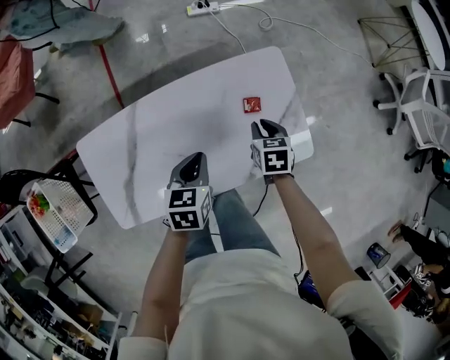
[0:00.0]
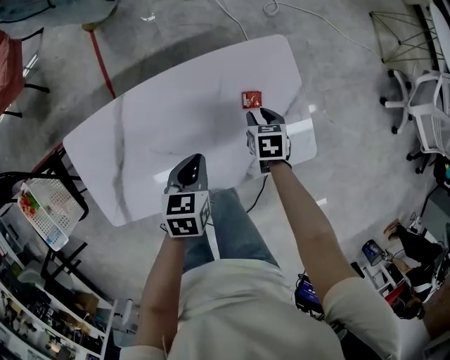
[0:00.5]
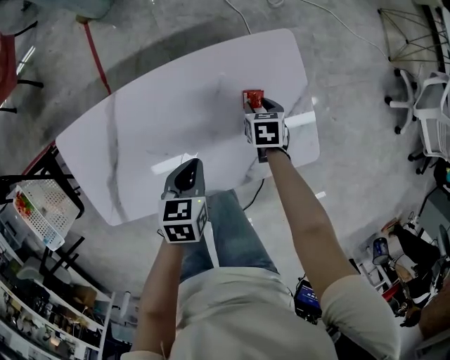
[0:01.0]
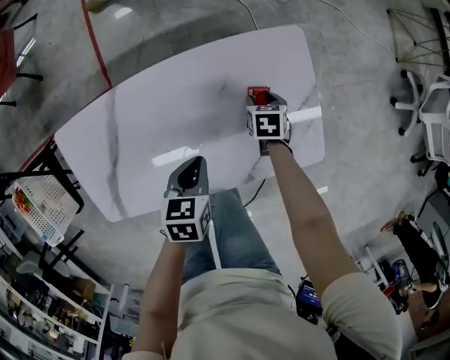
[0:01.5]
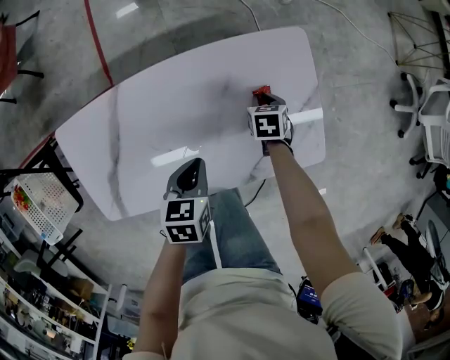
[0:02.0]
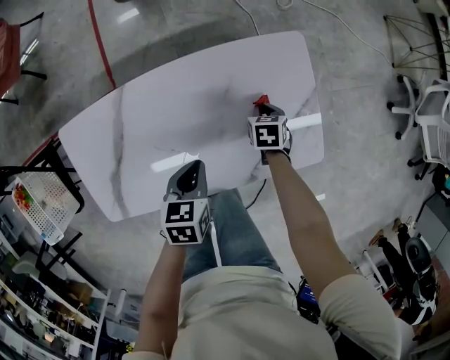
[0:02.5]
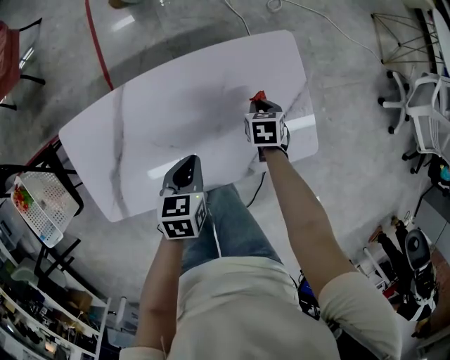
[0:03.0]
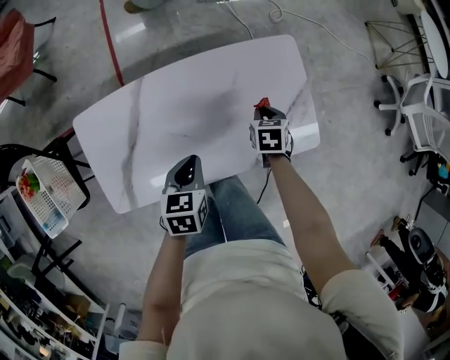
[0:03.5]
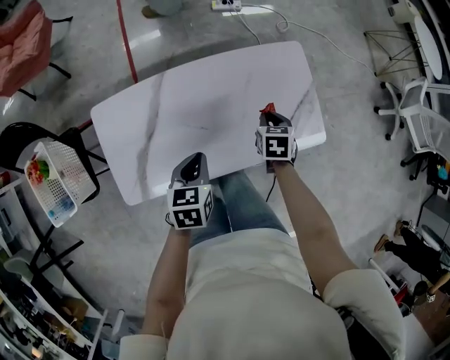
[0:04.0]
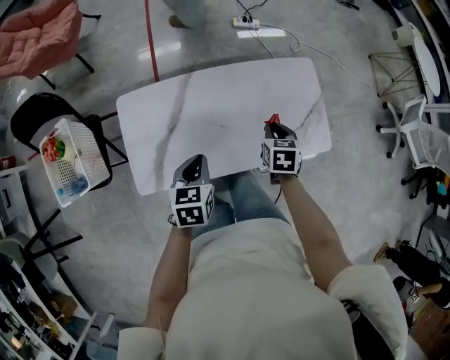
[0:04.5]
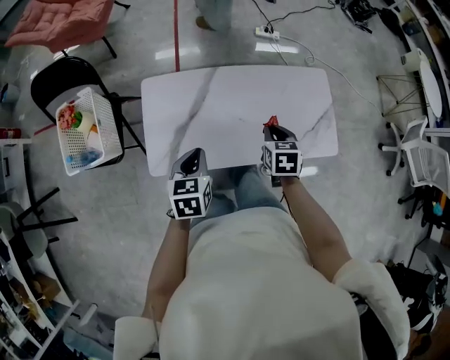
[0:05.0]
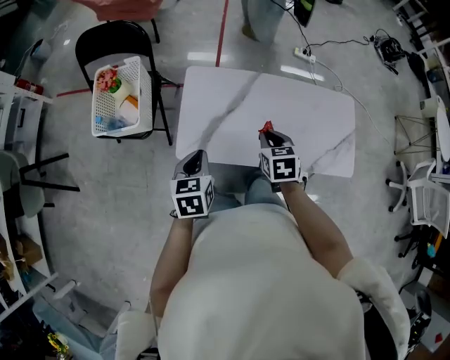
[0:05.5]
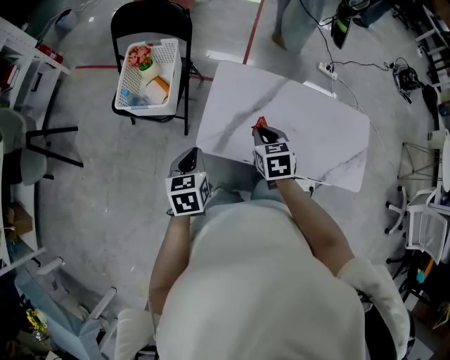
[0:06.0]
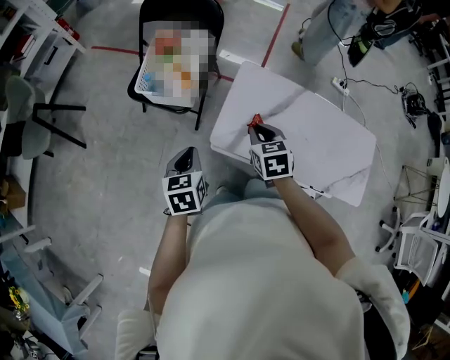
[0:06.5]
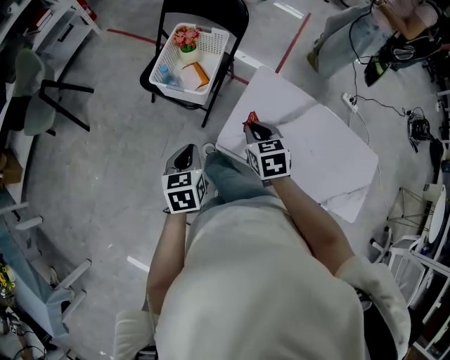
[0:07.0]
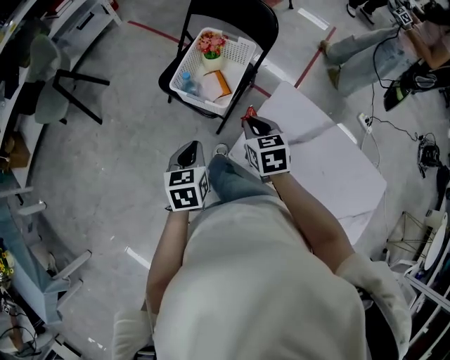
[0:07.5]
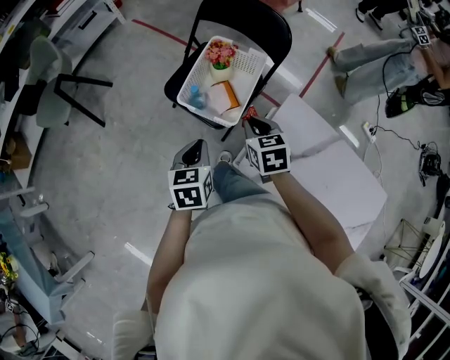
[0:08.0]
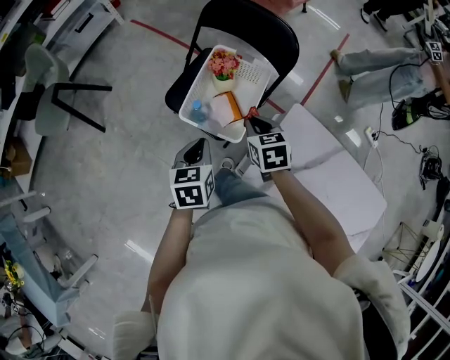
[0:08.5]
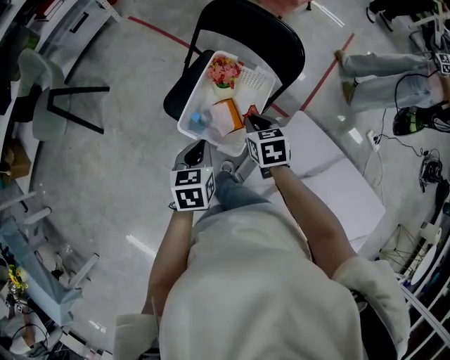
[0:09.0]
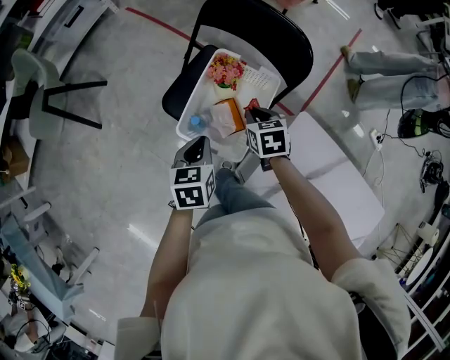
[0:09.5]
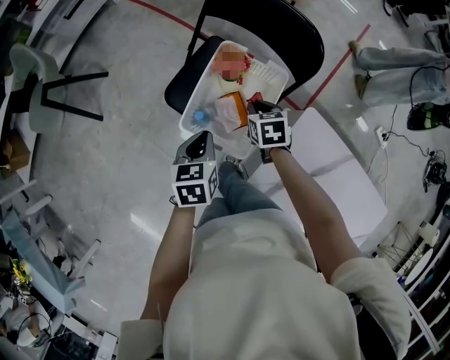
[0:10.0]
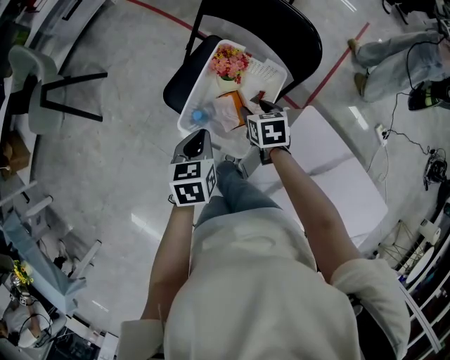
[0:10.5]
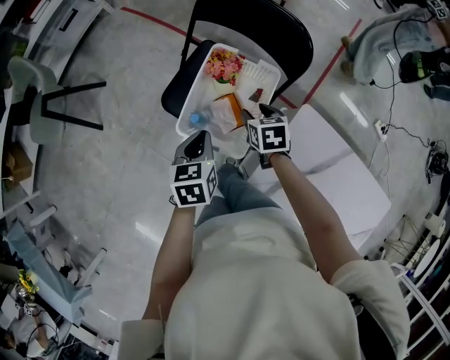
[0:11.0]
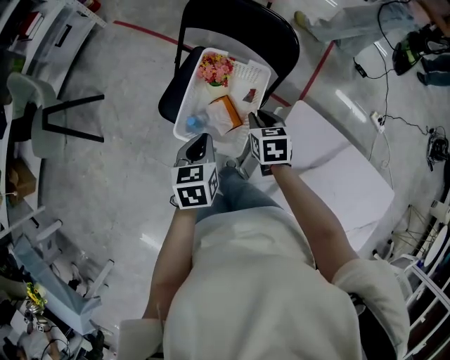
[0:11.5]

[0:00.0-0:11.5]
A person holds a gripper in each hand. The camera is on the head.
0:00.0 to 0:02.0: The left gripper heads downward, covering approximately 10 cm; the right gripper shifts some 15 cm downward.
0:02.0 to 0:04.0: The right gripper is displaced upward and backward by some 25 cm. Meanwhile the left gripper heads upward, backward and to the left, covering some 20 cm.
0:04.0 to 0:06.0: Both grippers are carried about 50 cm. The right gripper rotates about 40 degrees. The left gripper changes its angle by roughly 40 degrees.
0:06.0 to 0:07.5: The two grippers go some 20 cm to the left and forward. The right gripper changes its angle by roughly 20 degrees.
0:07.5 to 0:09.5: The grippers both shift forward by about 25 cm.
0:09.5 to 0:11.5: There are only small adjustments of the grippers.

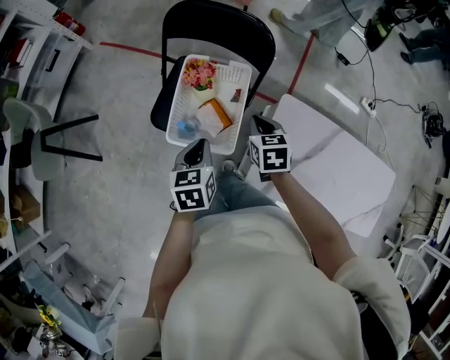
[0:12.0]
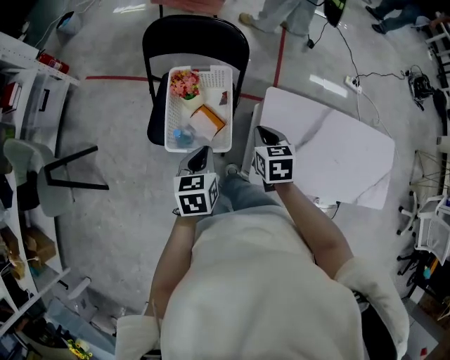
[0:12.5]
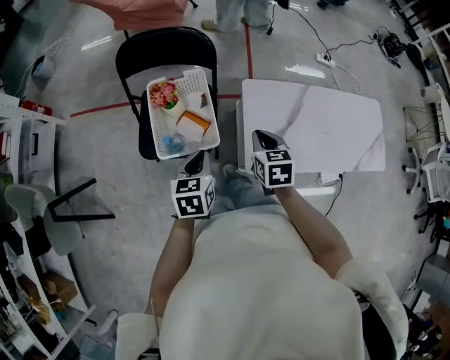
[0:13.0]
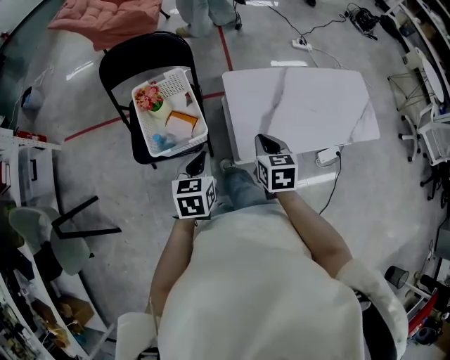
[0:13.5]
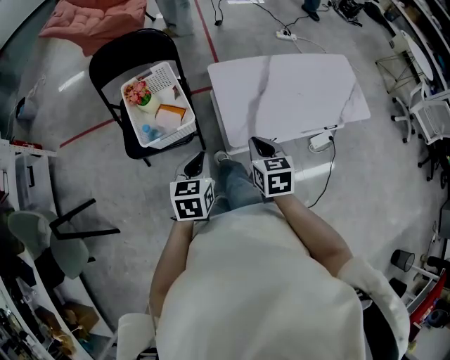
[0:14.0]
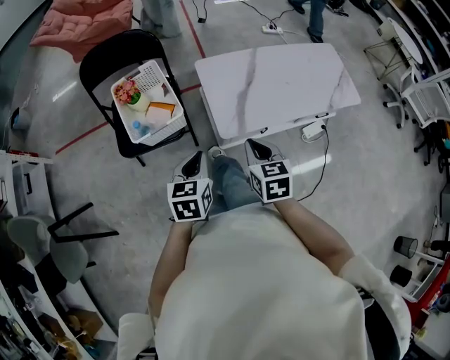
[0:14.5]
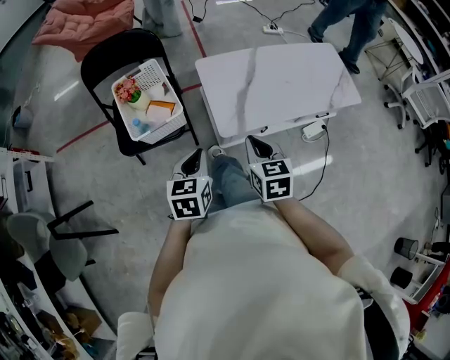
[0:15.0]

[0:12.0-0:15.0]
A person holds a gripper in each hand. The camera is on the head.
0:12.0 to 0:13.5: The left gripper changes place by approximately 15 cm, and turns by about 40 degrees. Meanwhile the right gripper moves roughly 25 cm, and swivels approximately 40 degrees.
0:13.5 to 0:15.0: The right gripper travels backward by approximately 15 cm. Meanwhile the left gripper goes about 15 cm backward and to the right.

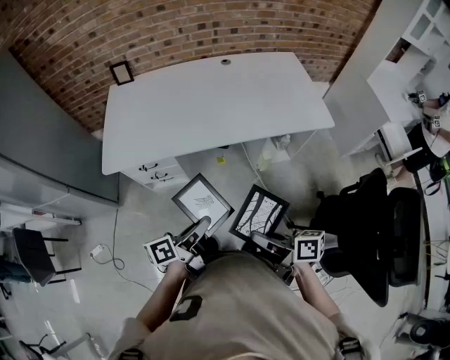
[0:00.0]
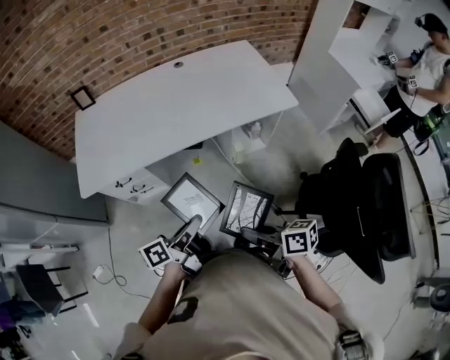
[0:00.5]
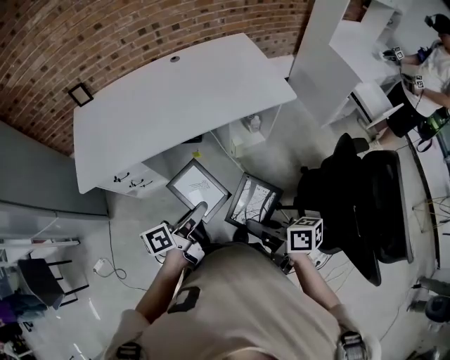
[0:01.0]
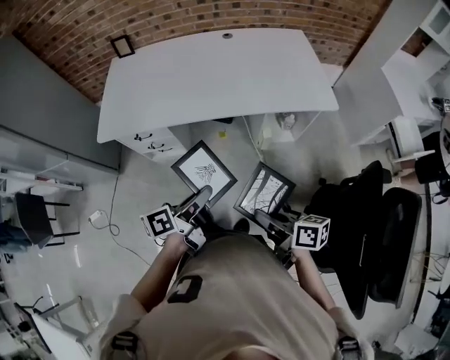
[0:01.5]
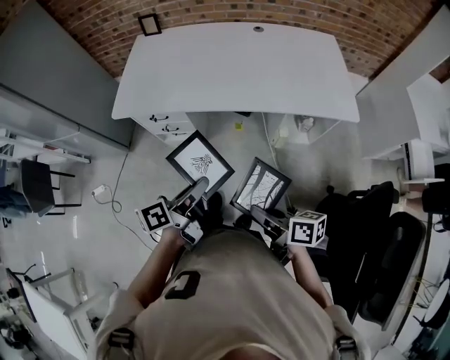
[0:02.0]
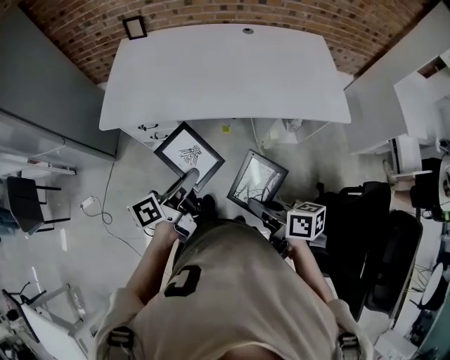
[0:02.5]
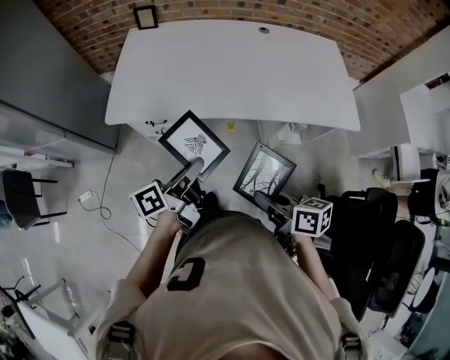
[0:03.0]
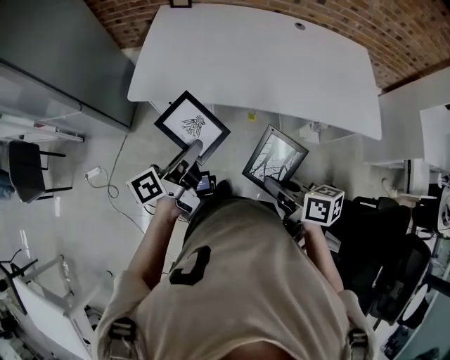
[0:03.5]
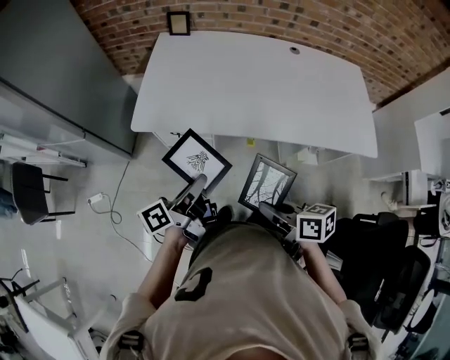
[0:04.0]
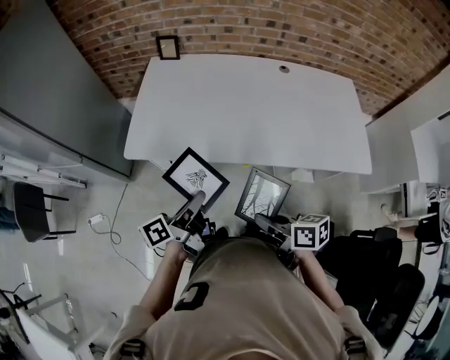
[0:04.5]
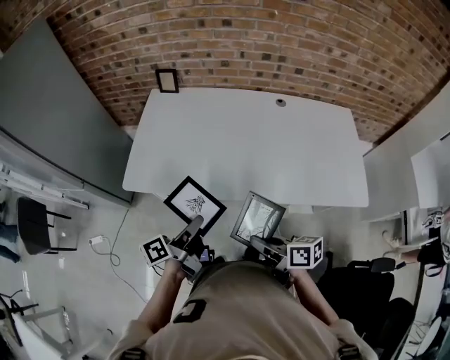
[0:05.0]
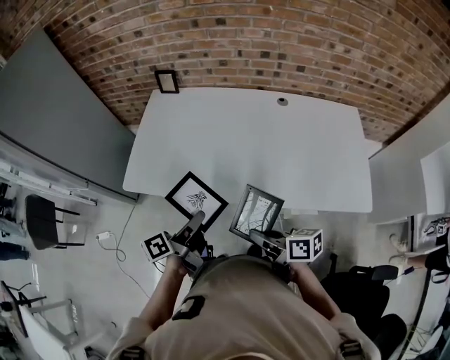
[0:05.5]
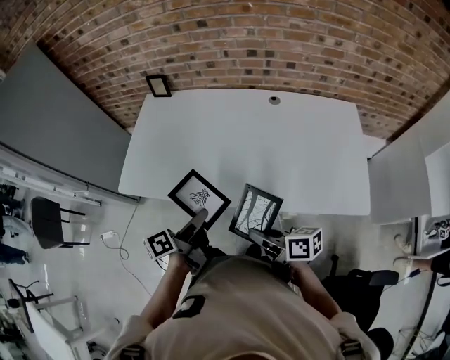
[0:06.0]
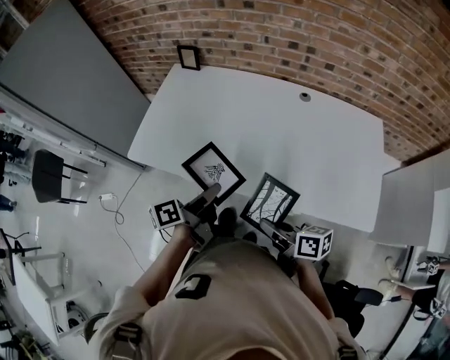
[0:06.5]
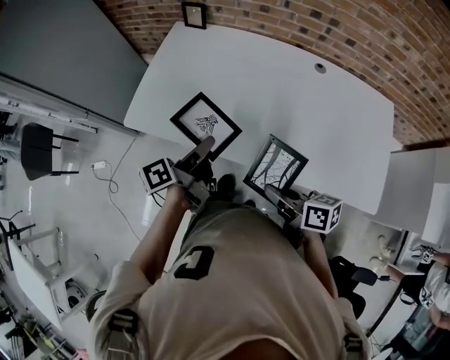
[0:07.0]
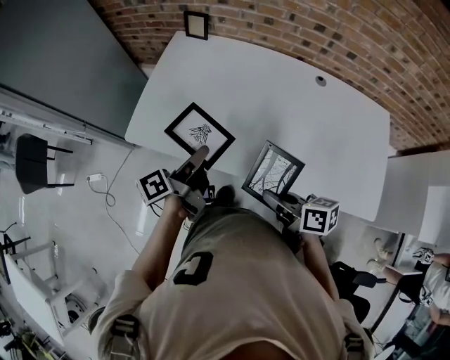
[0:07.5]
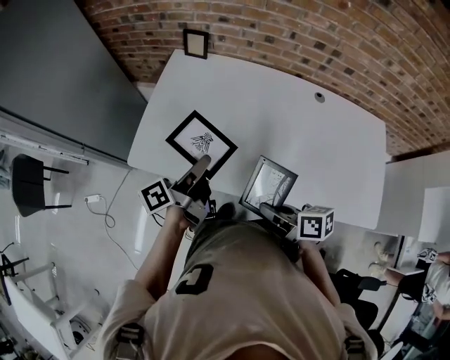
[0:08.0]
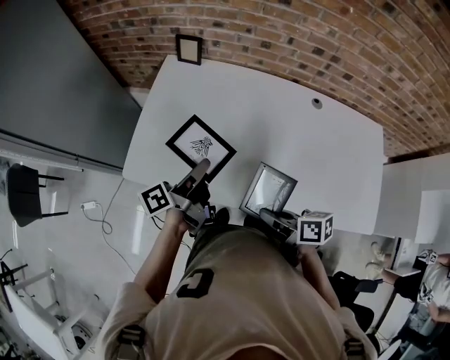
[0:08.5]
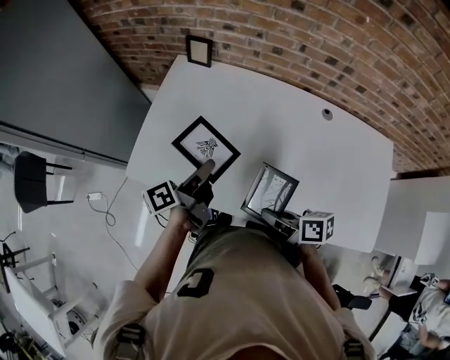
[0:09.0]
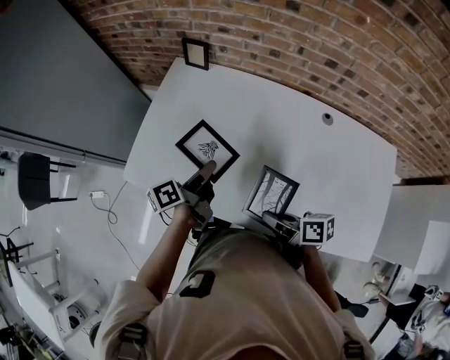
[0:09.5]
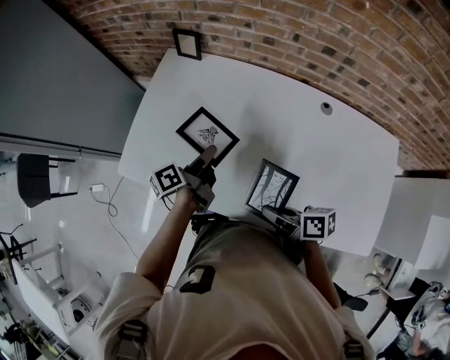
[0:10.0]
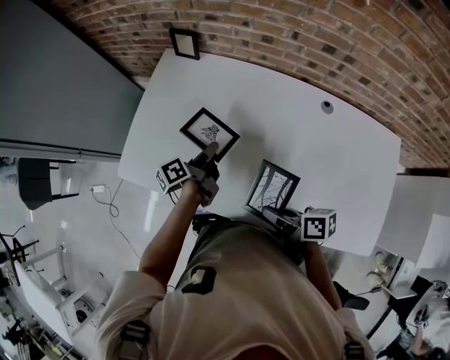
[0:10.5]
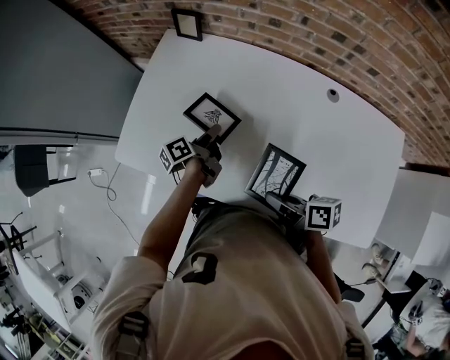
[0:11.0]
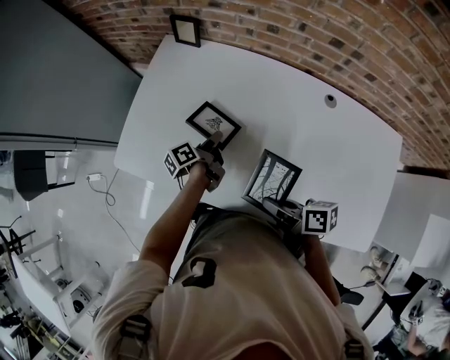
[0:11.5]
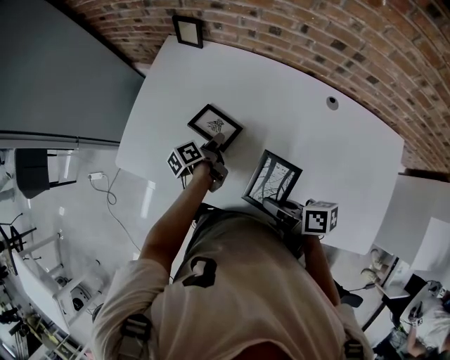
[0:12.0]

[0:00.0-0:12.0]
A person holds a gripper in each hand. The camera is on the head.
0:00.0 to 0:02.0: The two grippers go roughly 5 cm to the right.
0:02.0 to 0:04.0: The left gripper heads to the left and forward, covering some 20 cm, while the right gripper moves forward and to the left, approximately 20 cm.
0:04.0 to 0:06.0: The left gripper heads to the right, covering some 20 cm, while the right gripper heads to the right and forward, covering roughly 25 cm.
0:06.0 to 0:08.0: The two grippers go about 20 cm forward and to the left.
0:08.0 to 0:10.0: The left gripper shifts about 15 cm forward, to the right and downward, while the right gripper moves to the right and forward, roughly 10 cm.
0:10.0 to 0:12.0: The left gripper goes approximately 10 cm downward.
